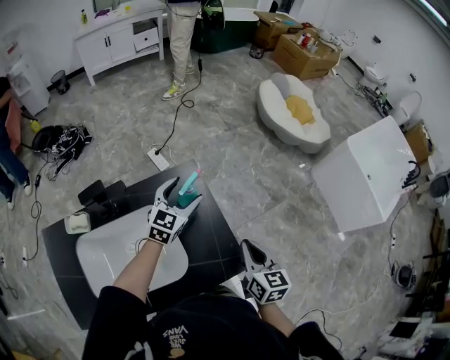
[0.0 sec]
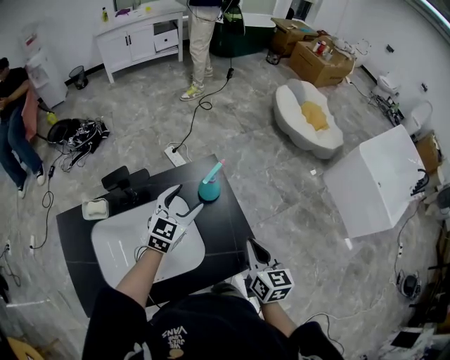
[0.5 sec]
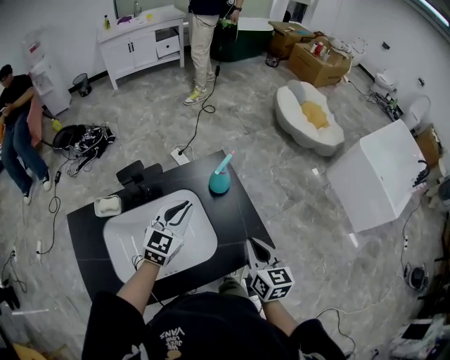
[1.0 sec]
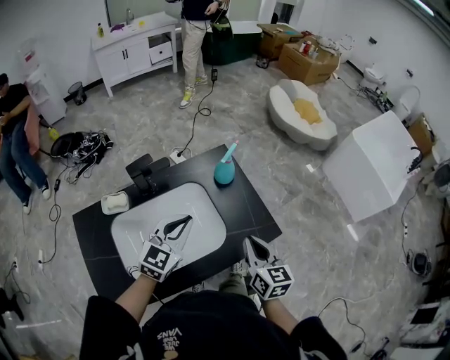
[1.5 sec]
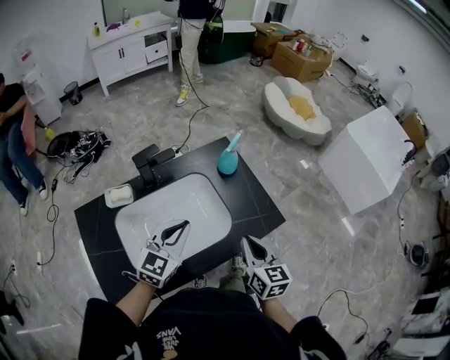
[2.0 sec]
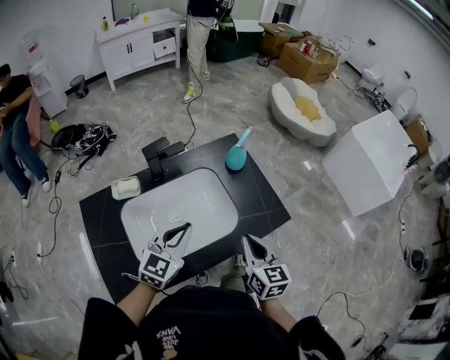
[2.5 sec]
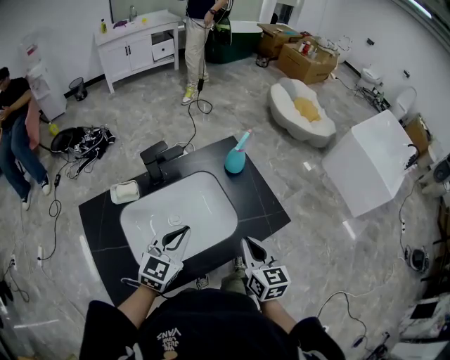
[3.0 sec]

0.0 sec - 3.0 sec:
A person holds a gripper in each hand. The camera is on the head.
0.0 sec - 1.5 sec: The left gripper shifts about 30 cm backward and to the left, and closes up. The right gripper is displaced backward and to the left by some 20 cm.
1.5 sec - 3.0 sec: The left gripper goes about 10 cm backward, while the right gripper moves backward and to the left, some 10 cm.

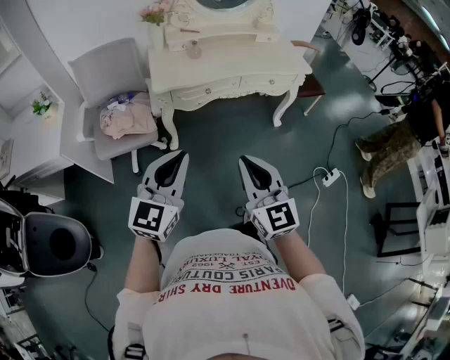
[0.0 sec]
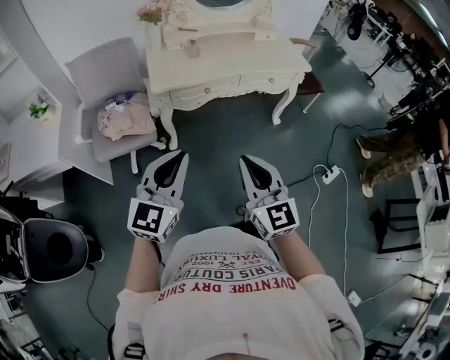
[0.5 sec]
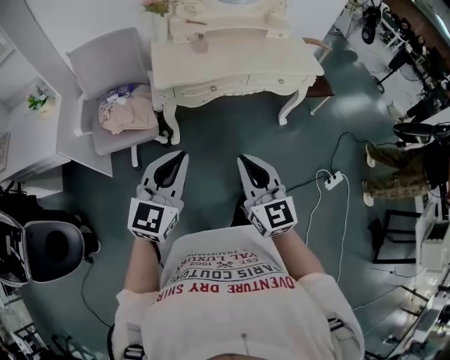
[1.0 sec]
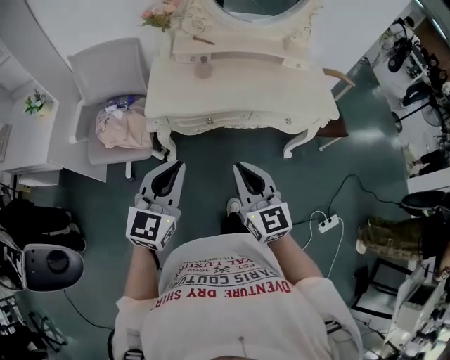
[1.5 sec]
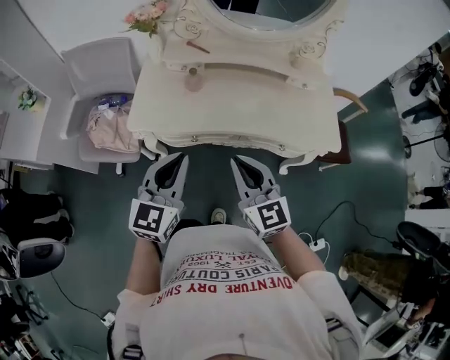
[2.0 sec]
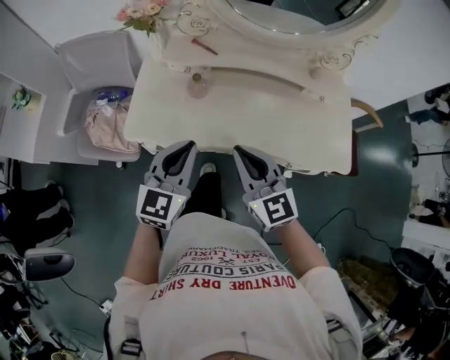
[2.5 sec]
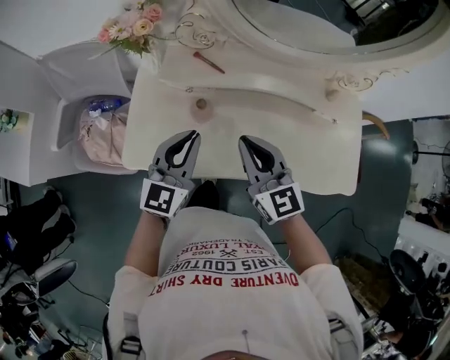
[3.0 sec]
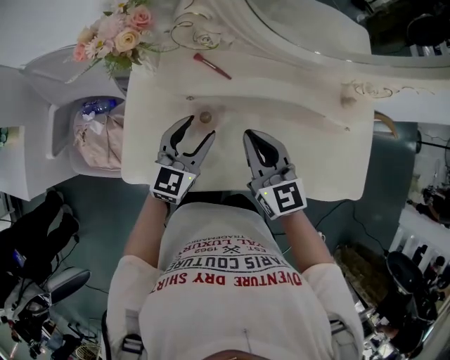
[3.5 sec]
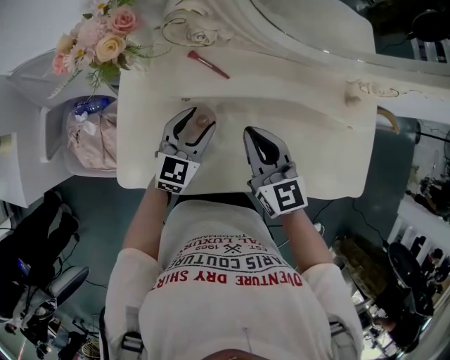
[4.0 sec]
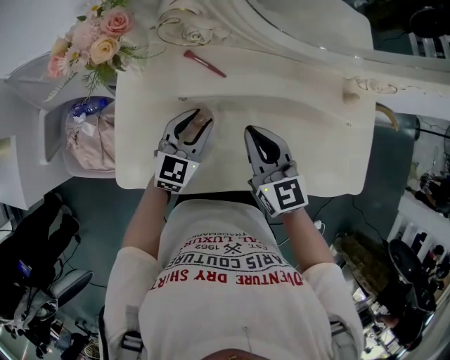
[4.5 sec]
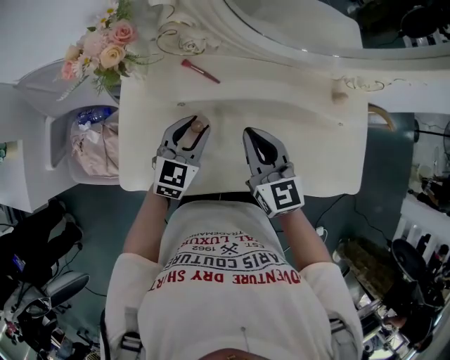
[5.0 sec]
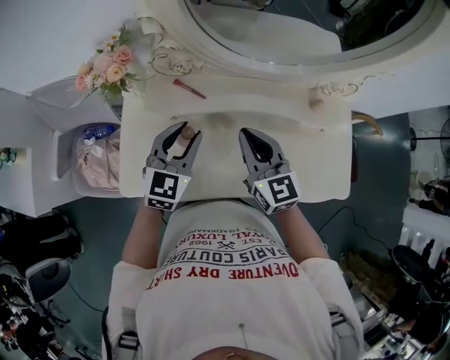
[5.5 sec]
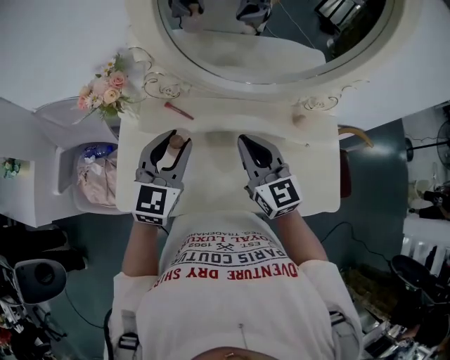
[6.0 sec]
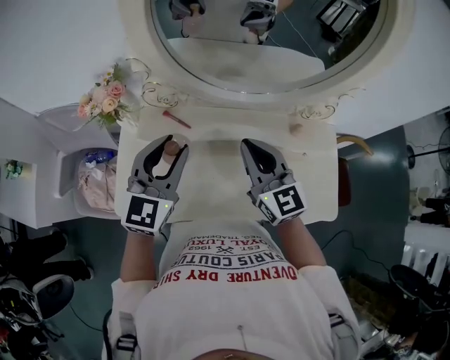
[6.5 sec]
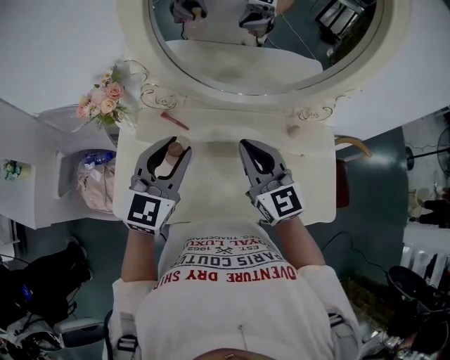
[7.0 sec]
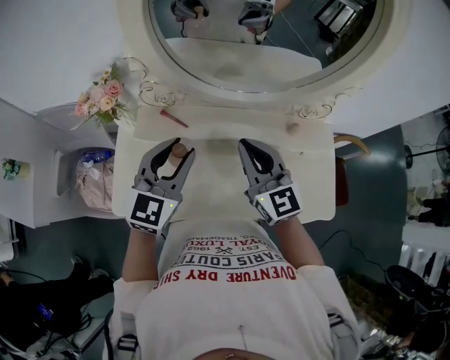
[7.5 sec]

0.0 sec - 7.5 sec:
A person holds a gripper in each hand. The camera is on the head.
0.0 sec - 2.0 sec: The pair of grippers is taken forward, some 40 cm. The right gripper turns by roughly 20 degrees, while the left gripper changes its angle by approximately 20 degrees.
2.0 sec - 4.0 sec: The right gripper goes approximately 40 cm forward; the left gripper moves forward and downward, approximately 50 cm, and opens up.
4.0 sec - 5.5 sec: The right gripper travels upward and to the right by some 10 cm. Meanwhile the left gripper travels upward by roughly 15 cm.
5.5 sec - 7.5 sec: The two grippers go approximately 10 cm upward and to the right.

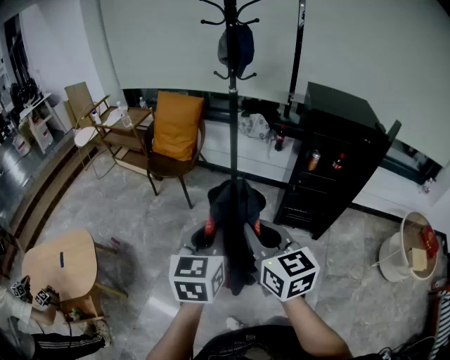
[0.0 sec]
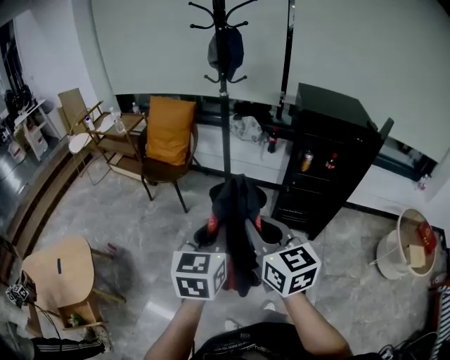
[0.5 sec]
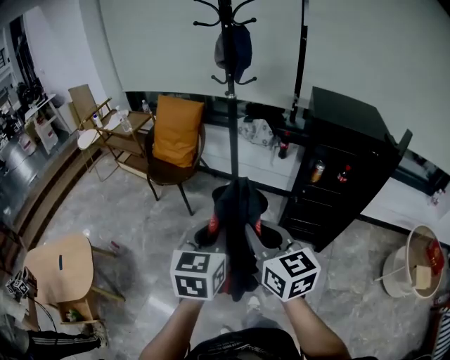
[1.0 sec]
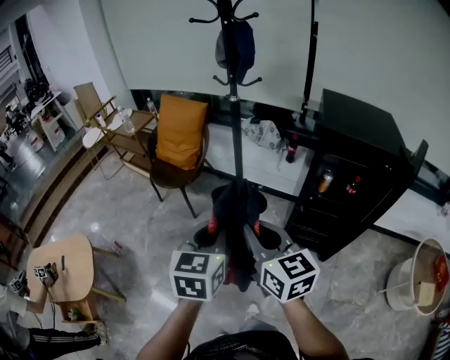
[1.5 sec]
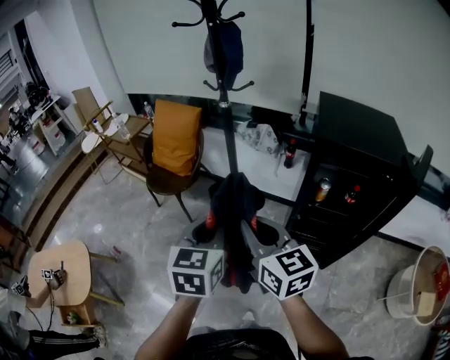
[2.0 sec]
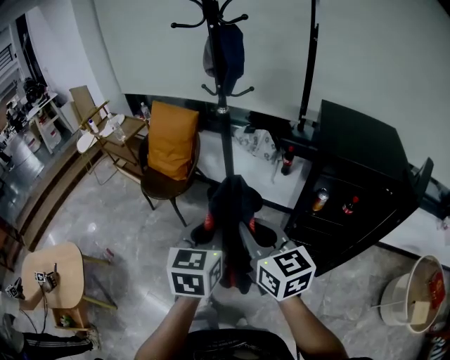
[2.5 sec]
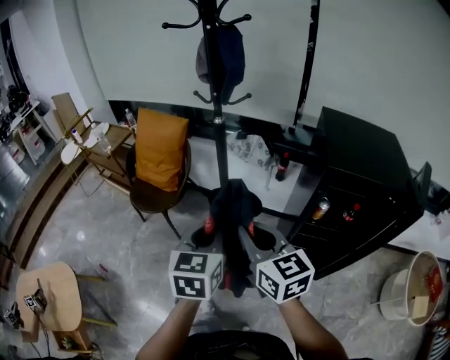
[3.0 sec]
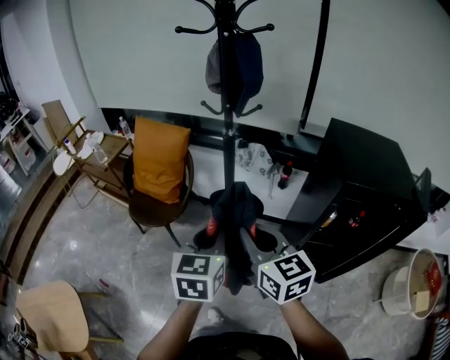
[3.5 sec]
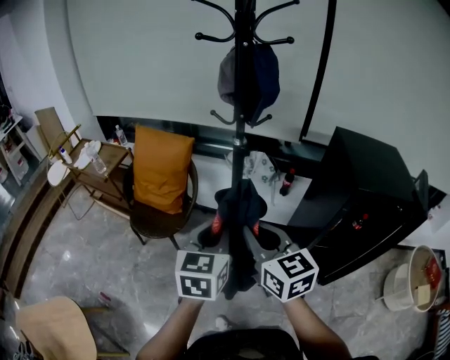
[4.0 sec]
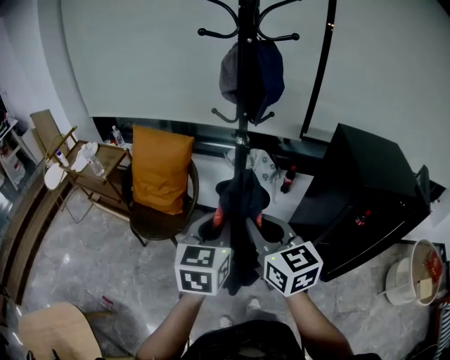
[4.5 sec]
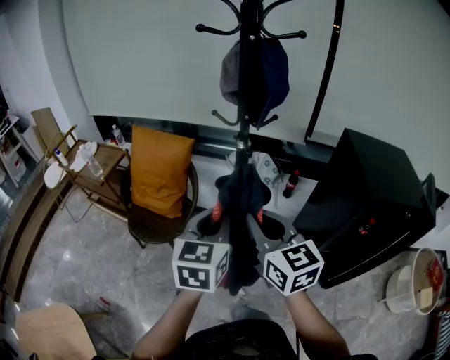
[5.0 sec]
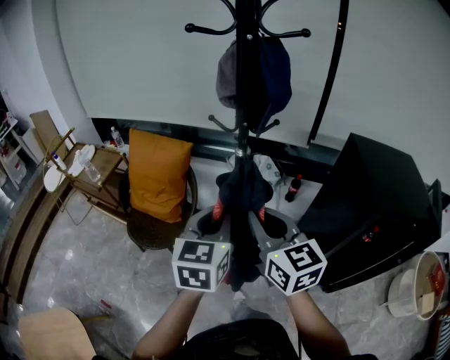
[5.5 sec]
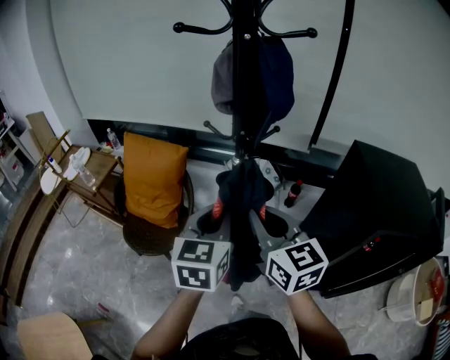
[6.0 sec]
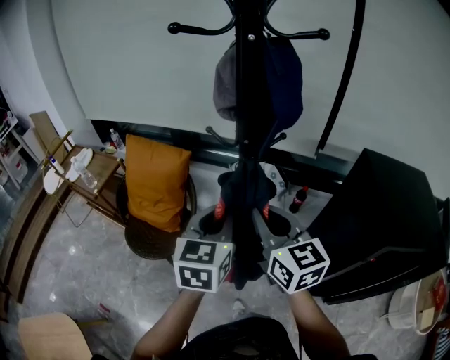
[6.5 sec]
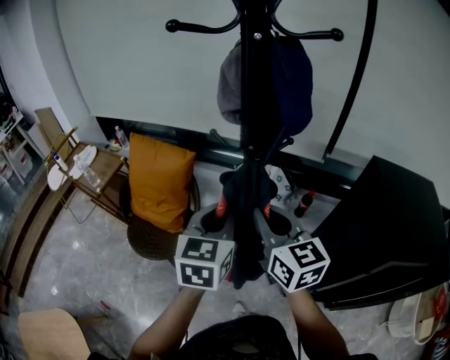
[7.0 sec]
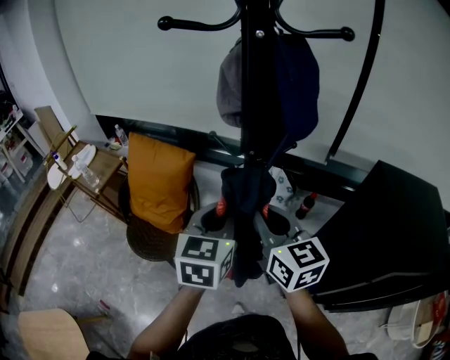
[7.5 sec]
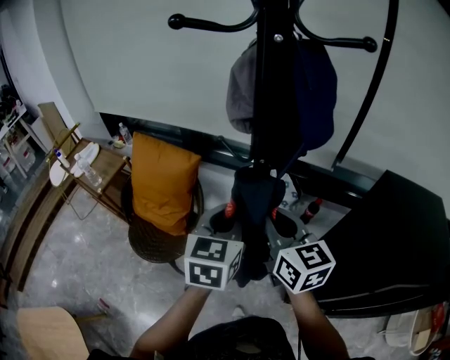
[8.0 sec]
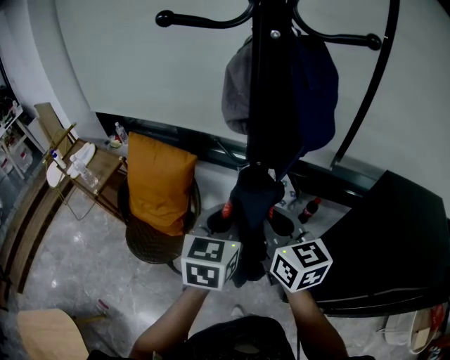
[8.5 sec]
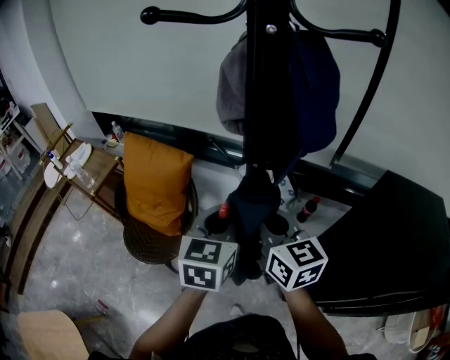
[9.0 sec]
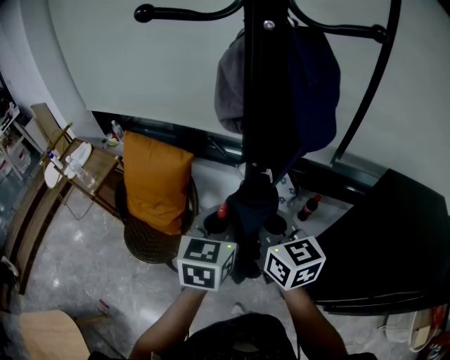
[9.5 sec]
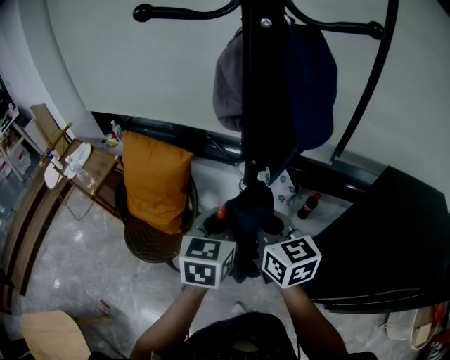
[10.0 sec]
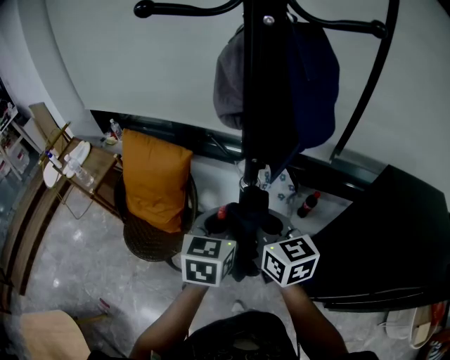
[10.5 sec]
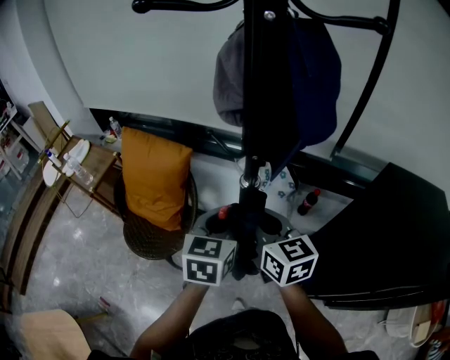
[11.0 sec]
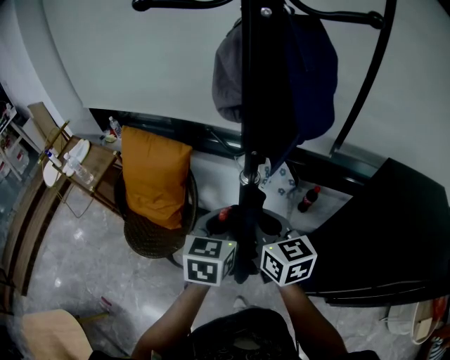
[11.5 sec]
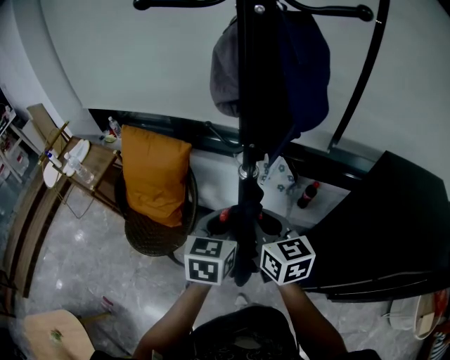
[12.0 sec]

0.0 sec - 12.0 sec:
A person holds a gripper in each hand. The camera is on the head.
0.0 sec - 2.0 sec: The two grippers go roughly 25 cm forward and to the right.
2.0 sec - 4.0 sec: The grippers both shift forward and to the left by some 25 cm.
4.0 sec - 6.0 sec: The grippers both shift forward by approximately 15 cm.
6.0 sec - 8.0 sec: The two grippers go some 10 cm forward.
8.0 sec - 10.0 sec: The right gripper shifts by about 5 cm.
10.0 sec - 12.0 sec: The right gripper changes place by roughly 5 cm, while the left gripper changes place by approximately 5 cm.

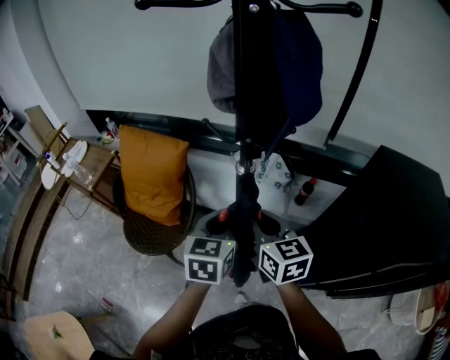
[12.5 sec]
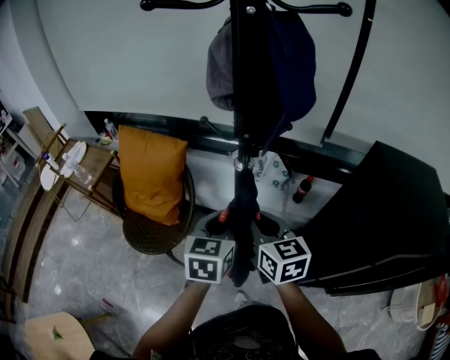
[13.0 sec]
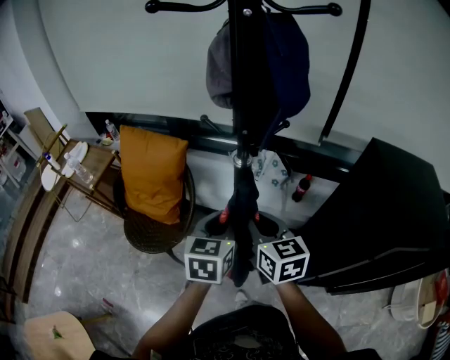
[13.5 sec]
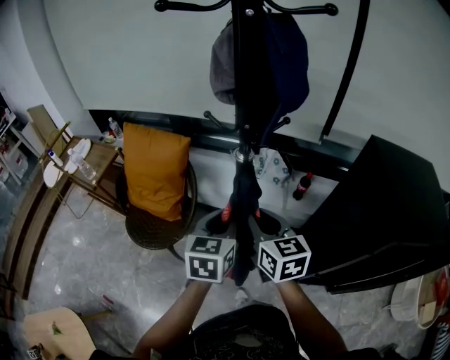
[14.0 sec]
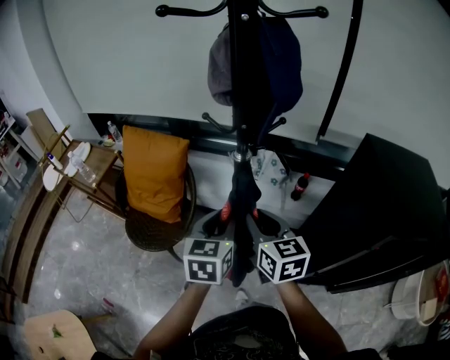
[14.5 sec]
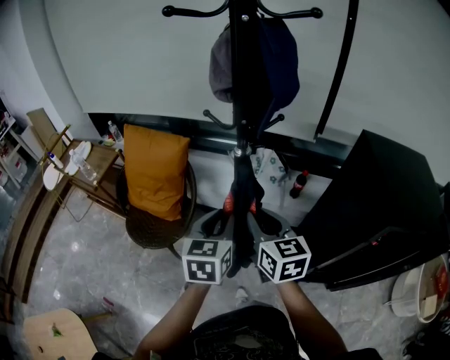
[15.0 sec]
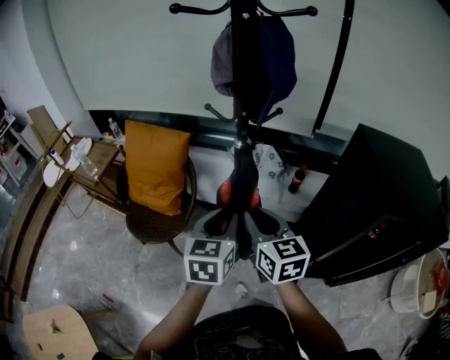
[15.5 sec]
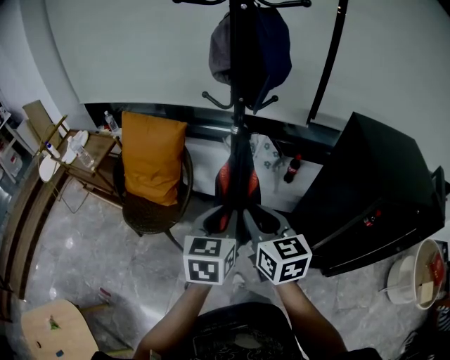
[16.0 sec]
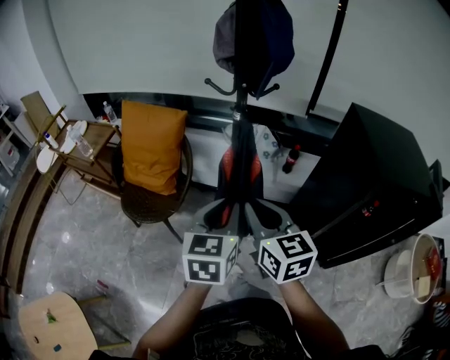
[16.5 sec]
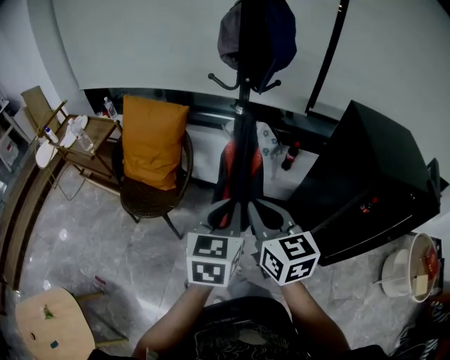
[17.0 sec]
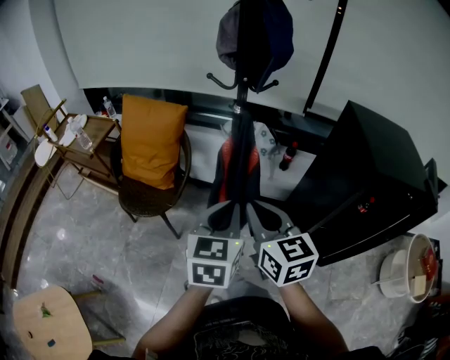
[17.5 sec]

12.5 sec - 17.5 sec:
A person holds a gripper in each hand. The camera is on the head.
12.5 sec - 15.0 sec: The grippers both shift backward by approximately 10 cm.
15.0 sec - 17.5 sec: Both grippers travel together backward, some 15 cm.
